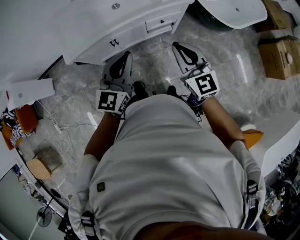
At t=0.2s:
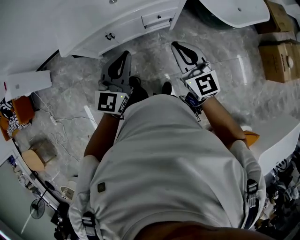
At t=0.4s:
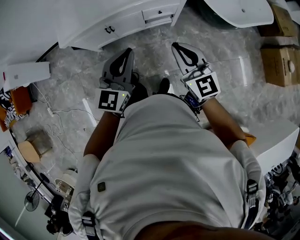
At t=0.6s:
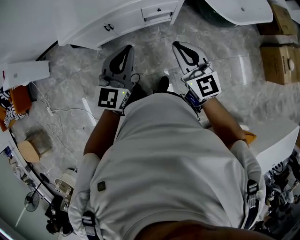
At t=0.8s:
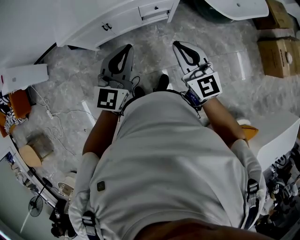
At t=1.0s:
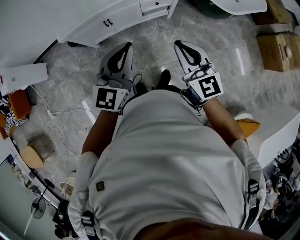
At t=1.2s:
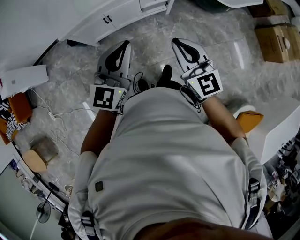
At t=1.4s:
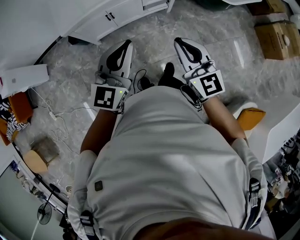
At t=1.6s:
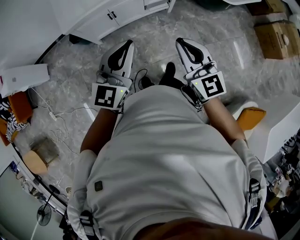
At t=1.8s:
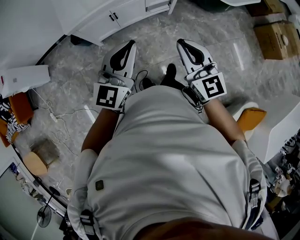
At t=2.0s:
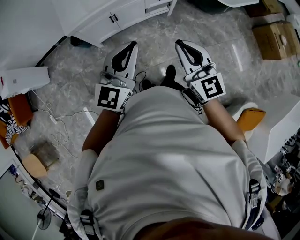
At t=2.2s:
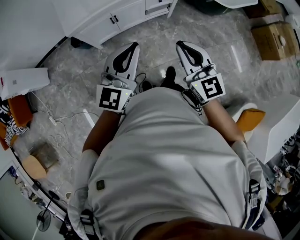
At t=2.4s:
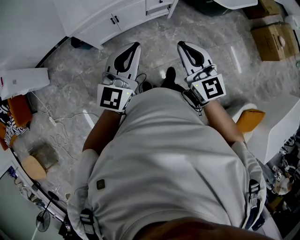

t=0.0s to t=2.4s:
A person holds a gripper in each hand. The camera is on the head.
t=0.0s to t=1.2s: The two grippers go some 15 cm backward.
t=1.2s to t=2.4s: Both grippers move backward and to the left, some 10 cm.

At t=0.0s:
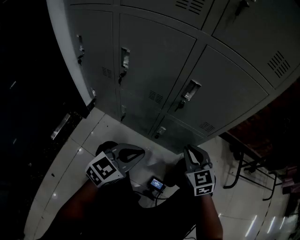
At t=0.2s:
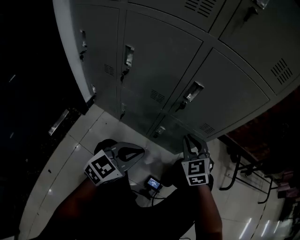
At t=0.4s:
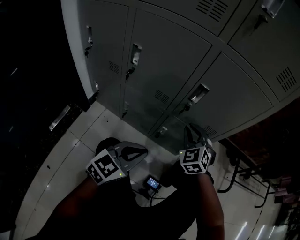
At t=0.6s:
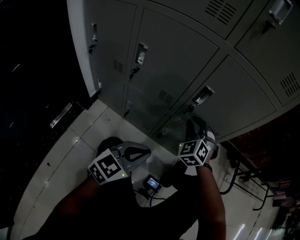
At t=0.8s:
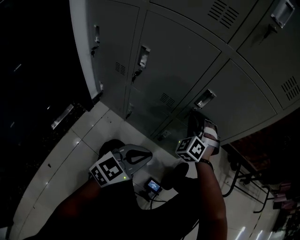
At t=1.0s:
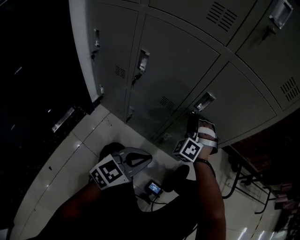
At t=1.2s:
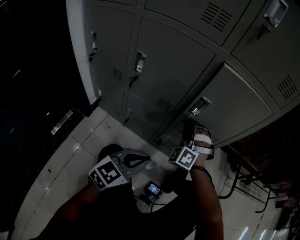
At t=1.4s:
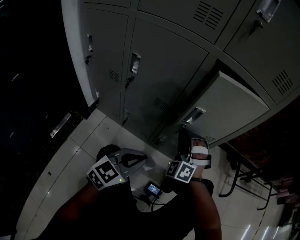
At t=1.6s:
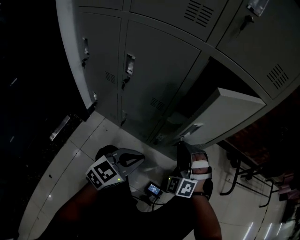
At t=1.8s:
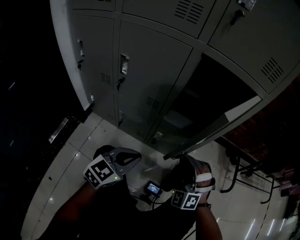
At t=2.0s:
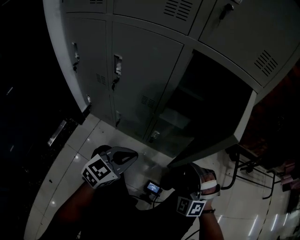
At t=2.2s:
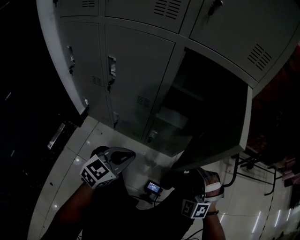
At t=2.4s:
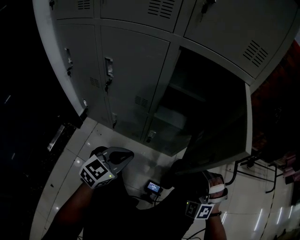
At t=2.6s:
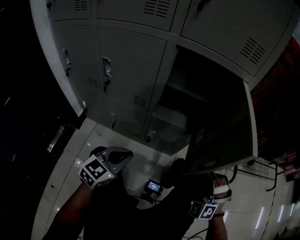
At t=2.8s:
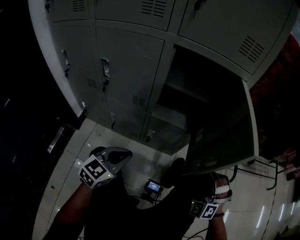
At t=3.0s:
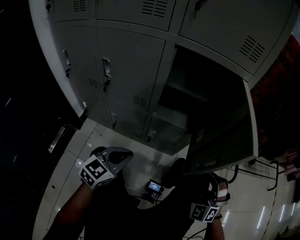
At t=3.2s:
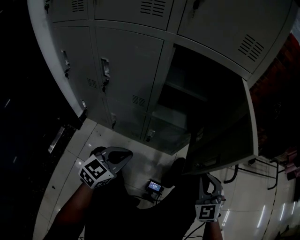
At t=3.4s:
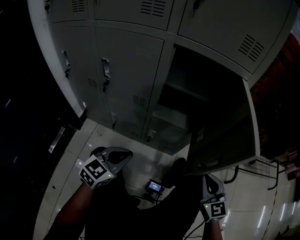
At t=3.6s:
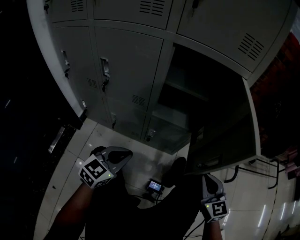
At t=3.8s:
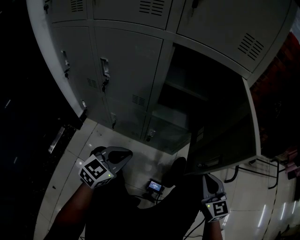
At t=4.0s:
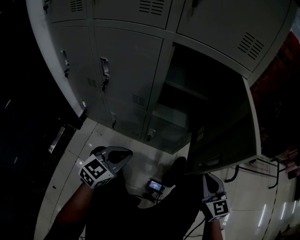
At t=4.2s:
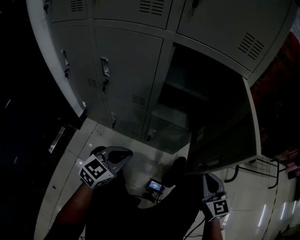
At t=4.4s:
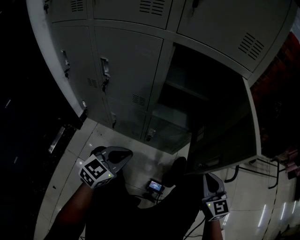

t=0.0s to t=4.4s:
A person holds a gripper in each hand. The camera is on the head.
t=0.0s to t=1.4s: The right gripper moves to the left, roughly 10 cm, and twists some 50 degrees counterclockwise, seen from behind.
t=1.4s to t=3.0s: The right gripper moves to the right and backward, roughly 25 cm.
t=3.0s to t=4.4s: The right gripper twists approximately 60 degrees clockwise, seen from behind, and closes.

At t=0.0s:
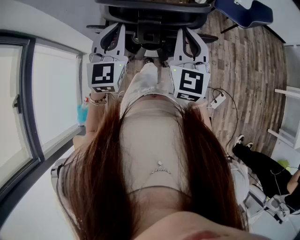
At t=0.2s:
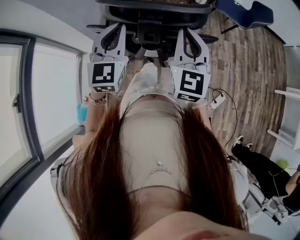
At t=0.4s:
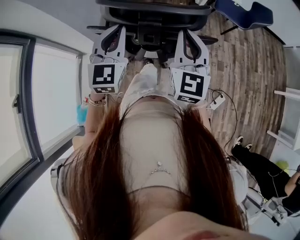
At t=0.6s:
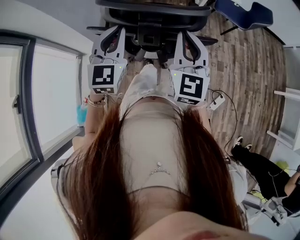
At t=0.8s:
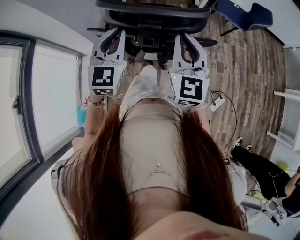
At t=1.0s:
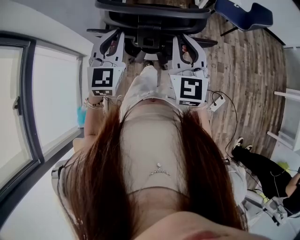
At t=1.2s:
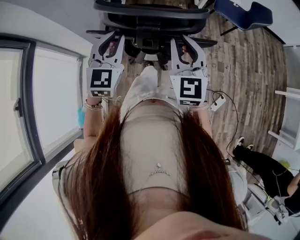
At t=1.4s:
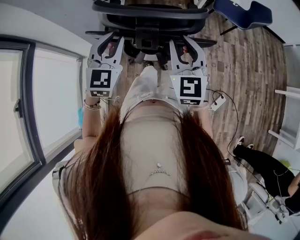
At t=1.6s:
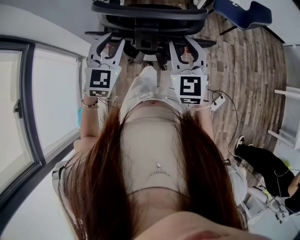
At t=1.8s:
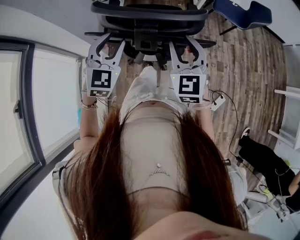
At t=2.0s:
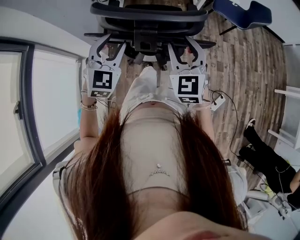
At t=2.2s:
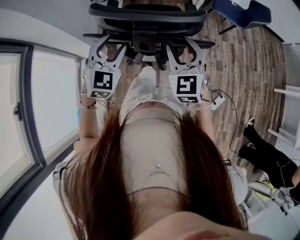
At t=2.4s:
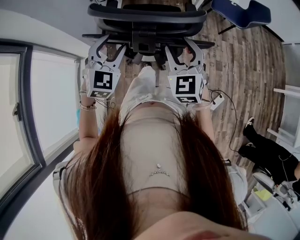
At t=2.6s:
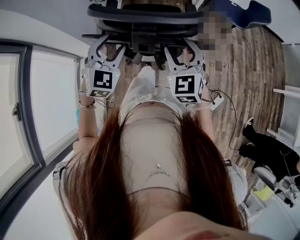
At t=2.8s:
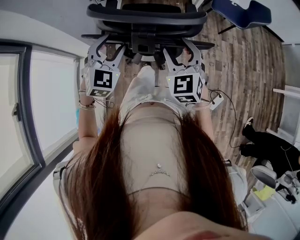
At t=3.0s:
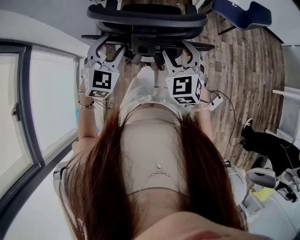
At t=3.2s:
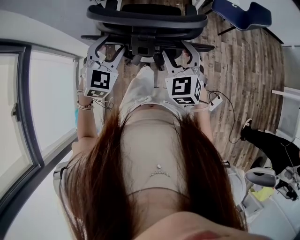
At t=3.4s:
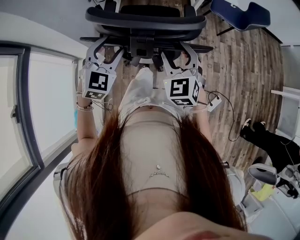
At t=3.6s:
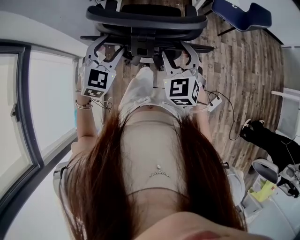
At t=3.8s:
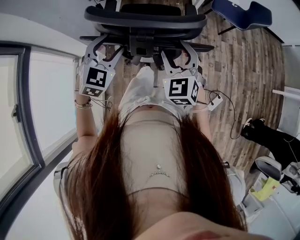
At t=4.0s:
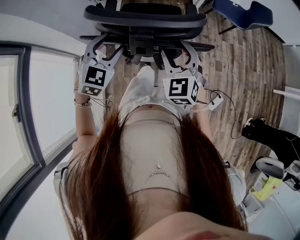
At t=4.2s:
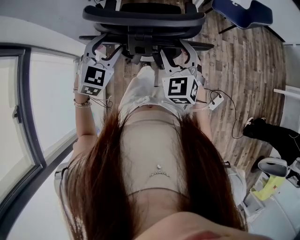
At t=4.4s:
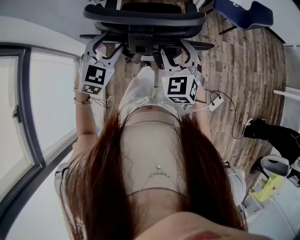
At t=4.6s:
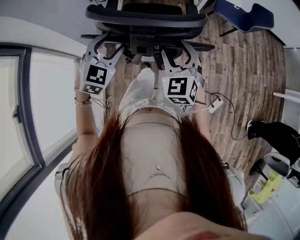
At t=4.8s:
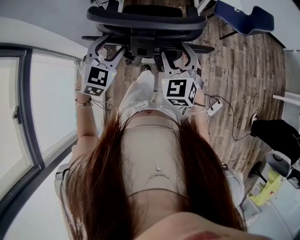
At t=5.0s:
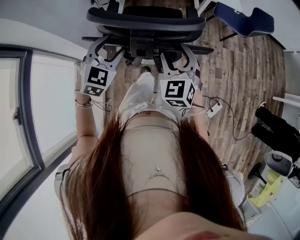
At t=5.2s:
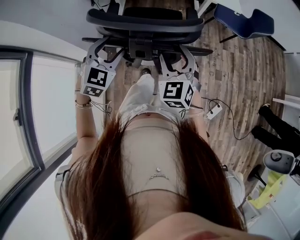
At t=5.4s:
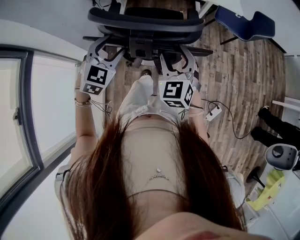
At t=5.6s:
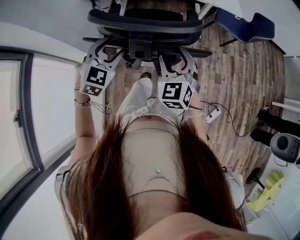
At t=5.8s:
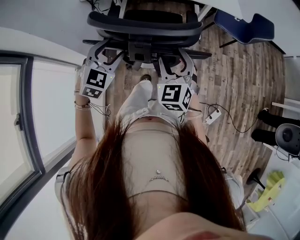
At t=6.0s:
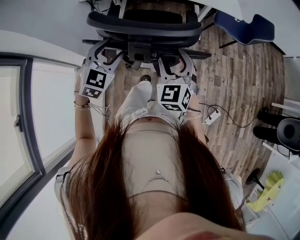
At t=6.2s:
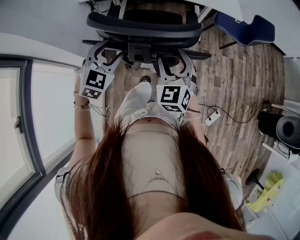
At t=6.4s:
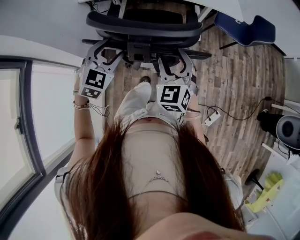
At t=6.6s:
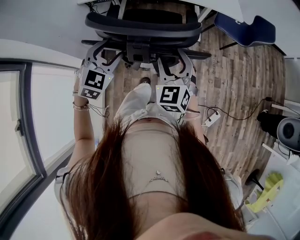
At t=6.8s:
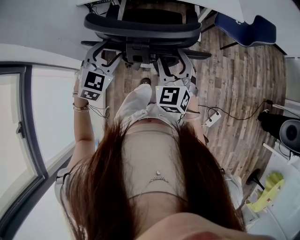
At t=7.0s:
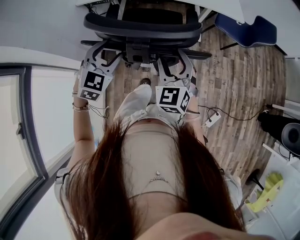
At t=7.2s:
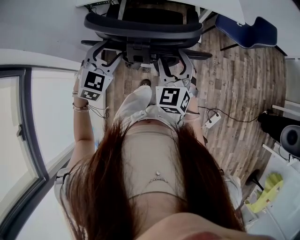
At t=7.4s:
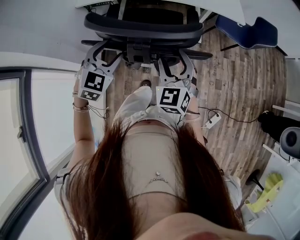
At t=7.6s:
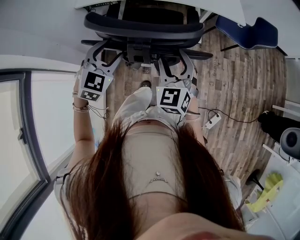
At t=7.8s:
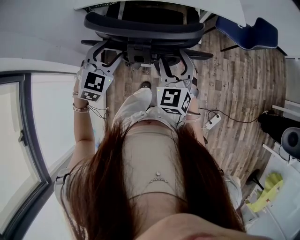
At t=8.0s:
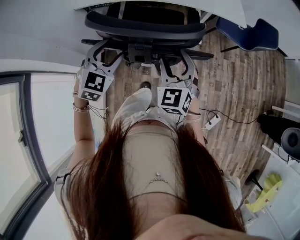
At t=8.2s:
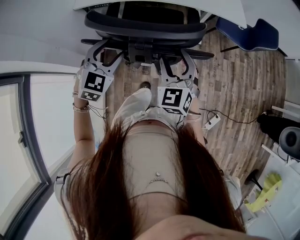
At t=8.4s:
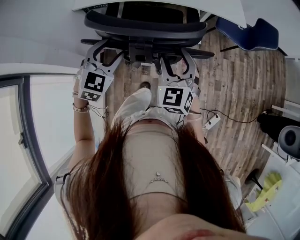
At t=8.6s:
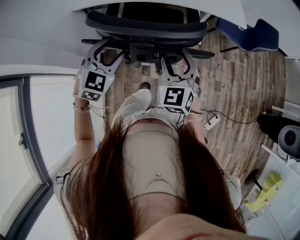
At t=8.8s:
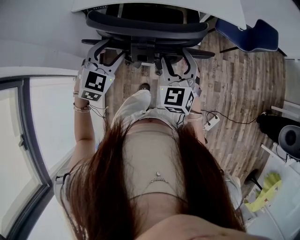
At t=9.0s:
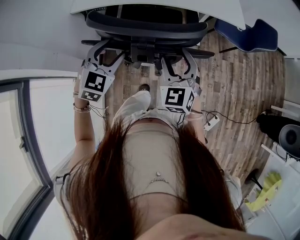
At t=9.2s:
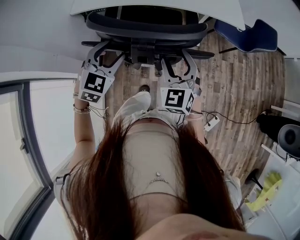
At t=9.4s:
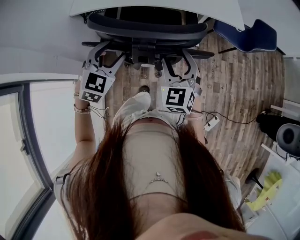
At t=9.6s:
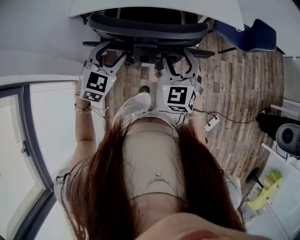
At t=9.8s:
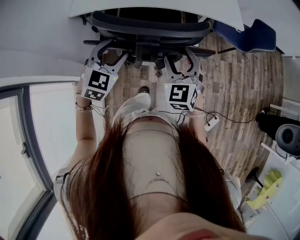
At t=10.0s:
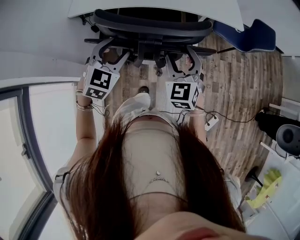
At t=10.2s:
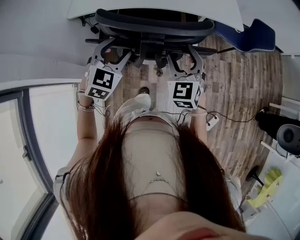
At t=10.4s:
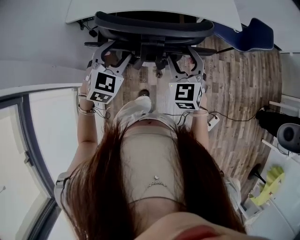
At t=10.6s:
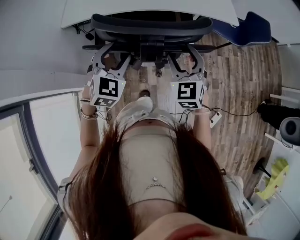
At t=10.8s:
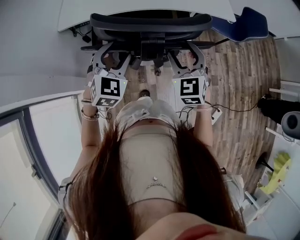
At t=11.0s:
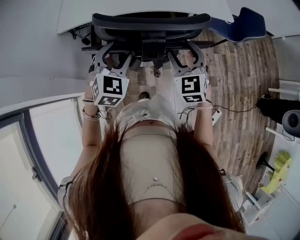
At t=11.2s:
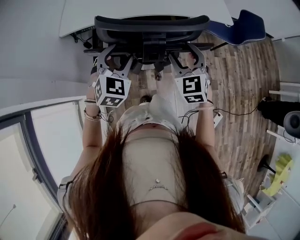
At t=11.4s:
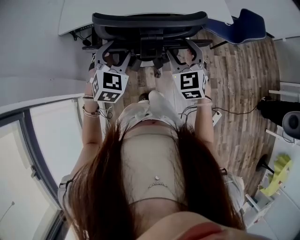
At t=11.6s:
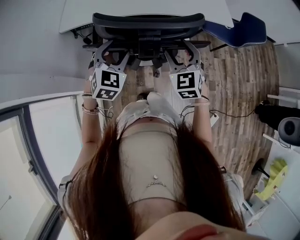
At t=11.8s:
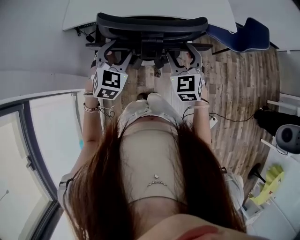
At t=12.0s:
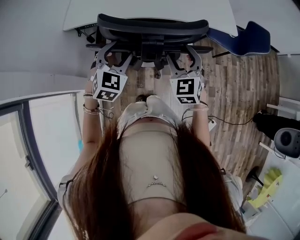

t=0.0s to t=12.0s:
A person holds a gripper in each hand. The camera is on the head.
t=0.0s to t=1.6s: The right gripper opens up. Meanwhile the left gripper opens up.
t=1.6s to t=3.0s: The right gripper goes approximately 5 cm downward, and opens its fingers, while the left gripper opens up.
t=3.0s to t=4.4s: The grippers stay close to where they were, moving slightly.
t=4.4s to t=6.0s: Both grippers travel together forward, roughly 5 cm.
t=6.0s to t=7.6s: Both grippers travel together forward, some 5 cm.
t=7.6s to t=9.0s: Both grippers travel together forward, roughly 5 cm.
t=9.0s to t=10.4s: The right gripper travels forward by about 5 cm.
t=10.4s to t=12.0s: The right gripper heads forward, covering approximately 5 cm, while the left gripper moves about 5 cm.

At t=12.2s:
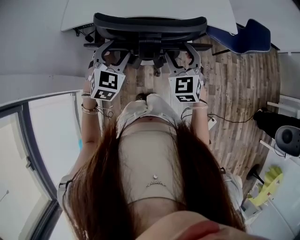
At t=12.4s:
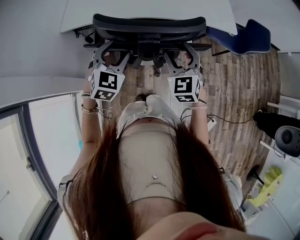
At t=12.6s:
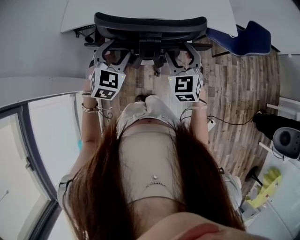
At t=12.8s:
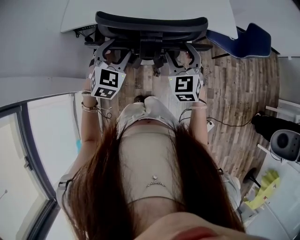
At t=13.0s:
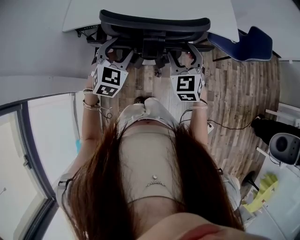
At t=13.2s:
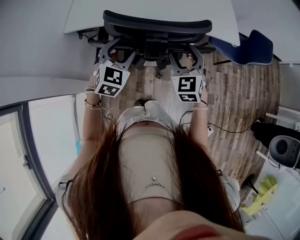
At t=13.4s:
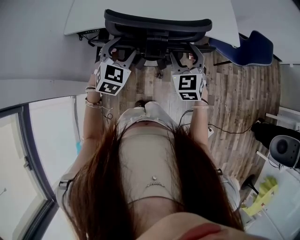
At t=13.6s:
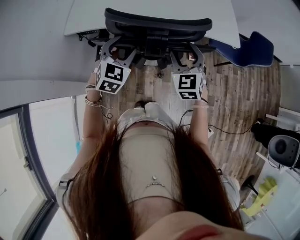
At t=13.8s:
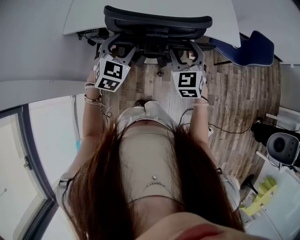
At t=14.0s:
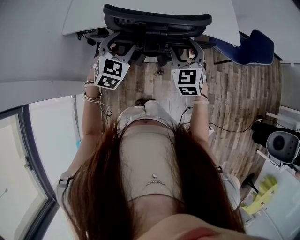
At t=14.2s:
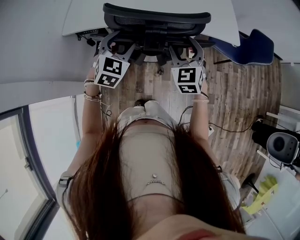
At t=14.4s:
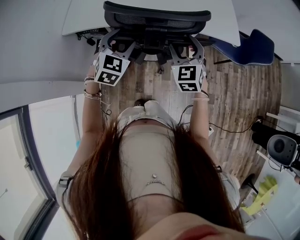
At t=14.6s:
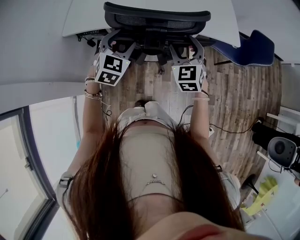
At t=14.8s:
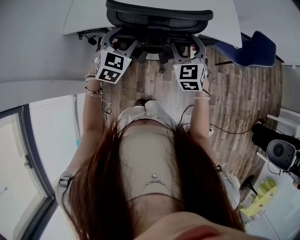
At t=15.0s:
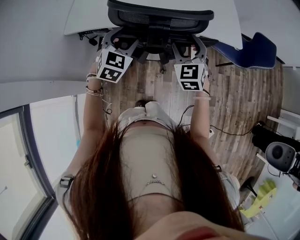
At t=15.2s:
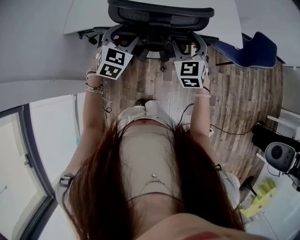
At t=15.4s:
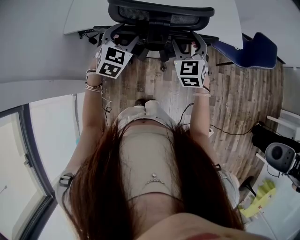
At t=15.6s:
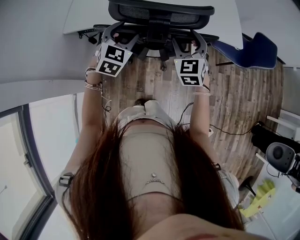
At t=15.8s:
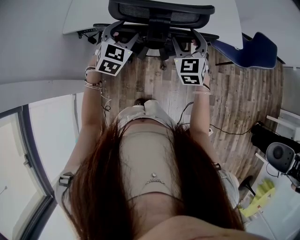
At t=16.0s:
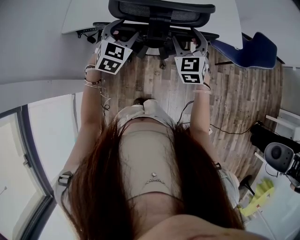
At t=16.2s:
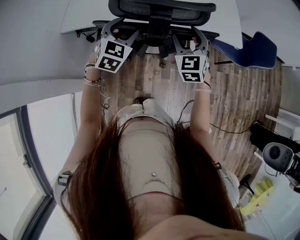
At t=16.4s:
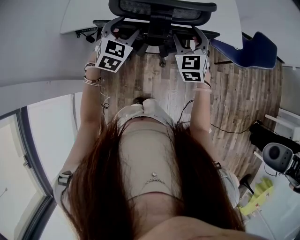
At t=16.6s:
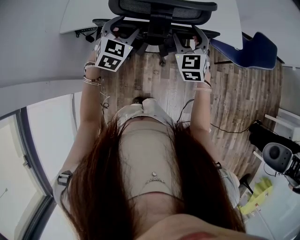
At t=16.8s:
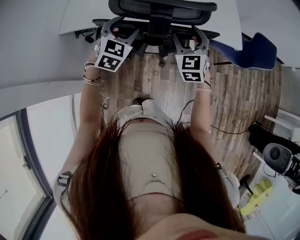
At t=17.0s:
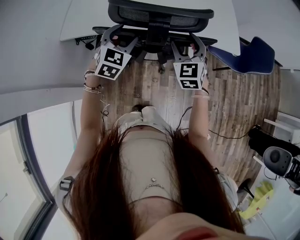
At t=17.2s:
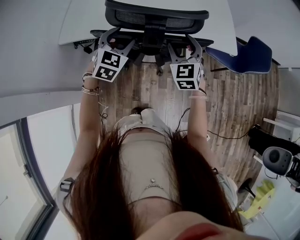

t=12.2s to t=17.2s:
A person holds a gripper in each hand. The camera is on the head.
t=12.2s to t=13.8s: The two grippers go roughly 10 cm forward.
t=13.8s to t=15.6s: Both grippers move forward, some 5 cm.
t=15.6s to t=17.2s: The grippers make only small movements.
